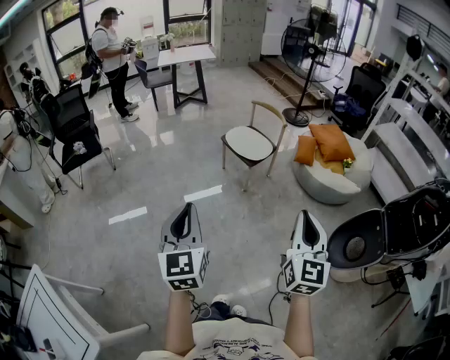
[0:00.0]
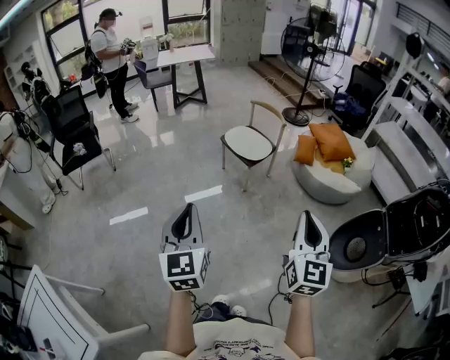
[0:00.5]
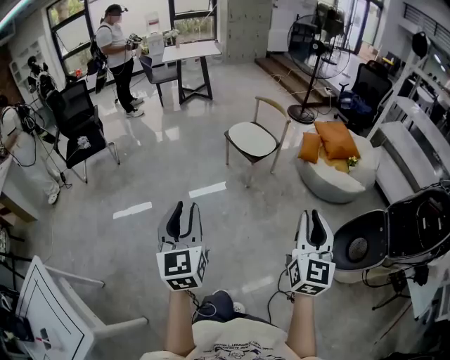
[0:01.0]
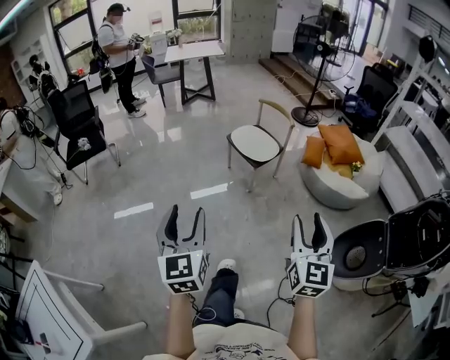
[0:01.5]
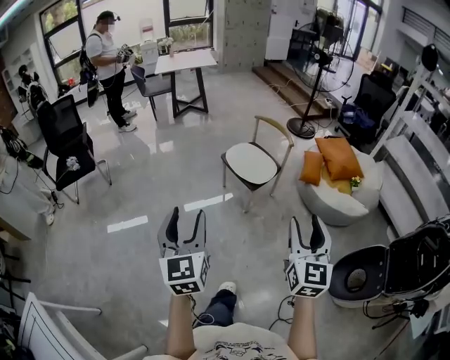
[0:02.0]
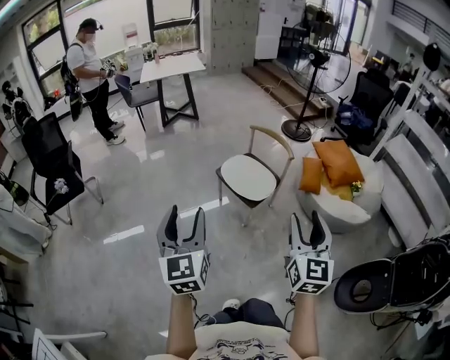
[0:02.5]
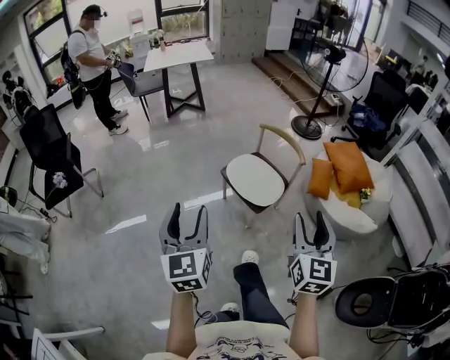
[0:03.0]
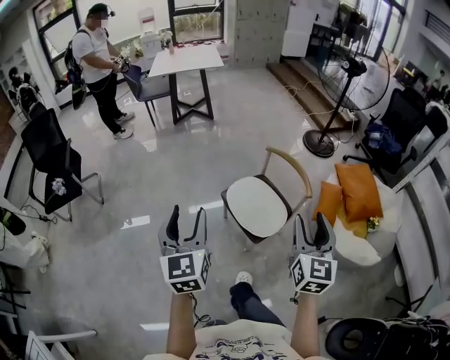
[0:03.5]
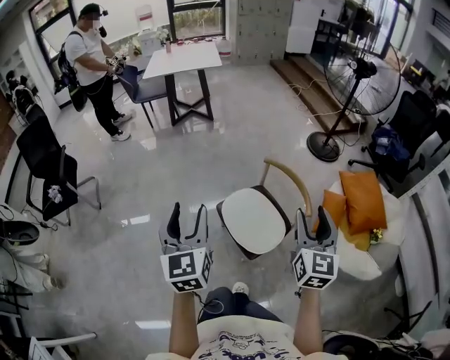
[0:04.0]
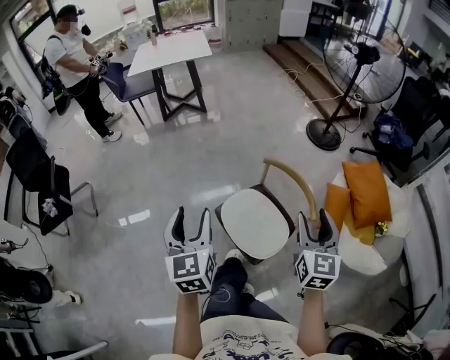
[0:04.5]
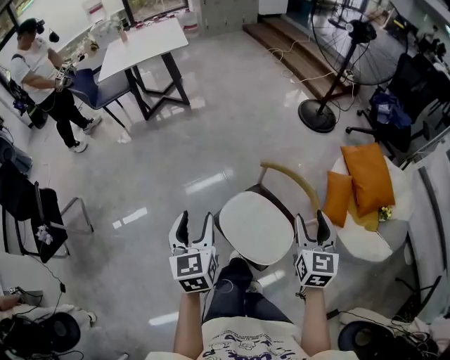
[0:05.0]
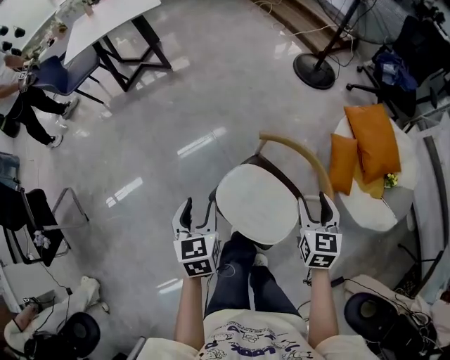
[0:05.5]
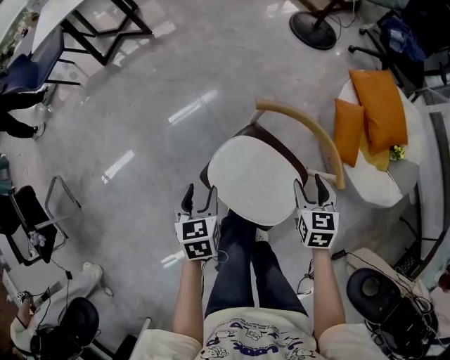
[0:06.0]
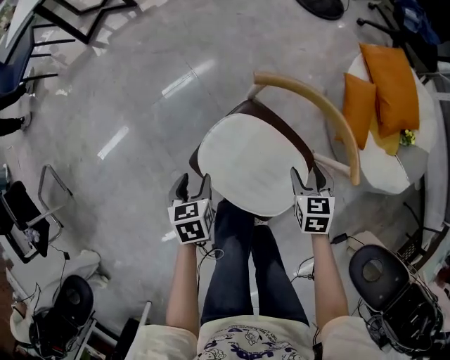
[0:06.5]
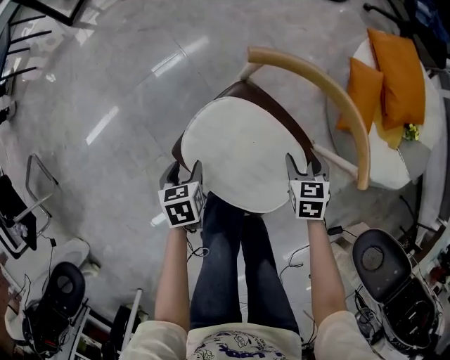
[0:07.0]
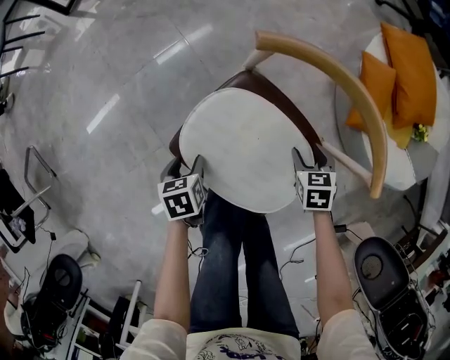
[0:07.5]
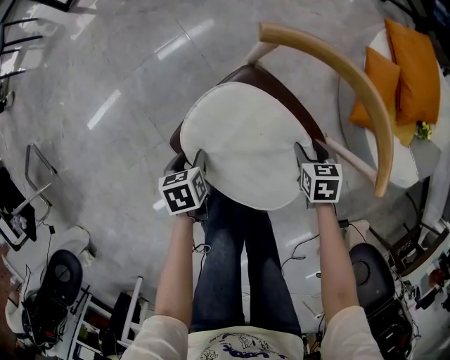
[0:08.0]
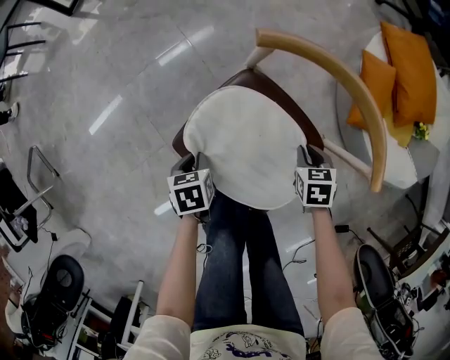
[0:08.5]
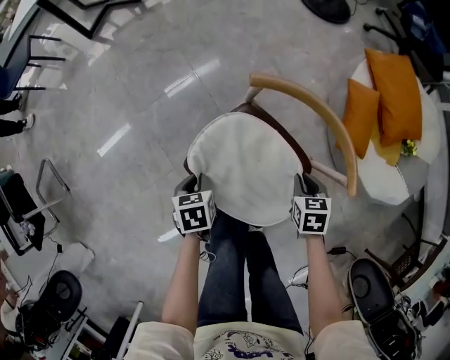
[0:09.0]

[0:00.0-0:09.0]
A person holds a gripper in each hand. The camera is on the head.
0:00.0 to 0:02.0: Both grippers travel together forward, roughly 25 cm. The right gripper opens. The left gripper opens.
0:02.0 to 0:04.5: The two grippers travel together, forward, approximately 80 cm.
0:04.5 to 0:07.0: The grippers both shift downward by about 60 cm. The left gripper tips its fingers downward by roughly 50 degrees. The right gripper tilts its fingers approximately 50 degrees downward.
0:07.0 to 0:09.0: The left gripper is displaced upward by roughly 5 cm, and closes its fingers. The right gripper closes up.

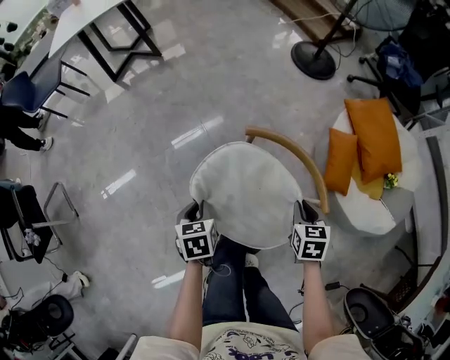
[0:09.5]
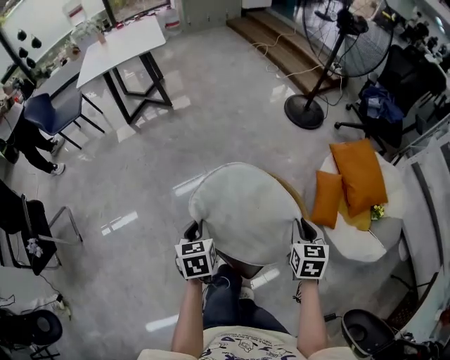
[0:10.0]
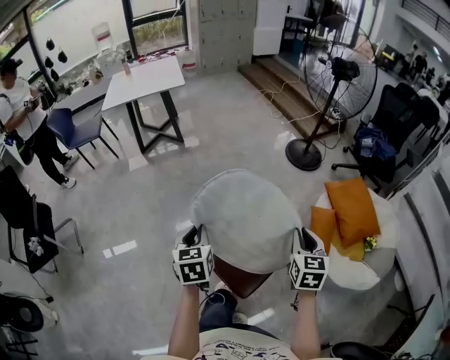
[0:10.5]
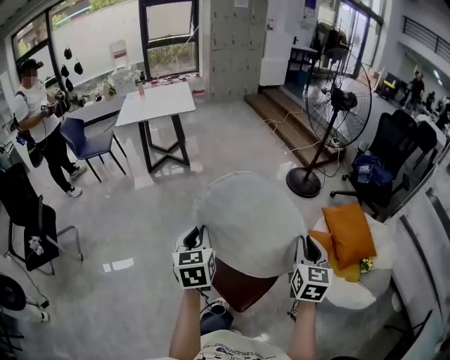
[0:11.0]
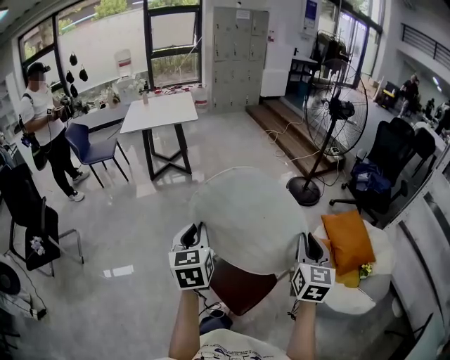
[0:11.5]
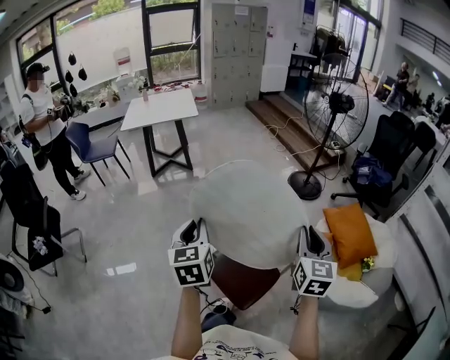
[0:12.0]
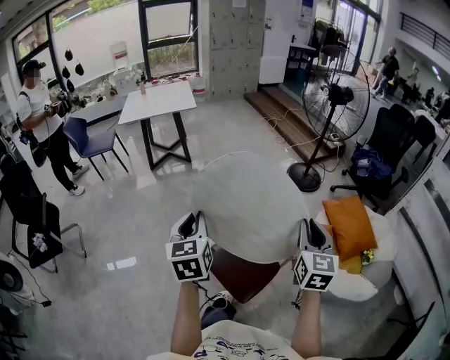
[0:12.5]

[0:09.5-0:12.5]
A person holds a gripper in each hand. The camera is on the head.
0:09.5 to 0:11.0: Both grippers move upward, approximately 40 cm. The right gripper points its fingers roughly 40 degrees further upward, while the left gripper angles its fingers upward, by some 40 degrees.
0:11.0 to 0:12.5: The grippers both shift upward by roughly 5 cm.

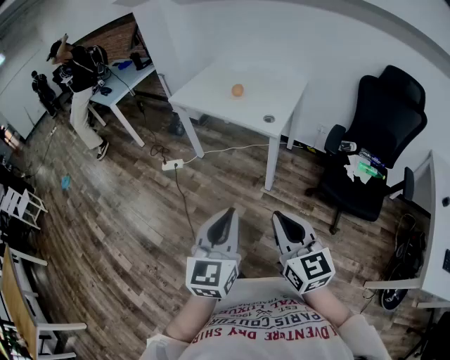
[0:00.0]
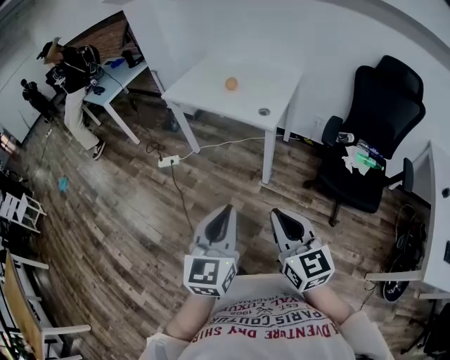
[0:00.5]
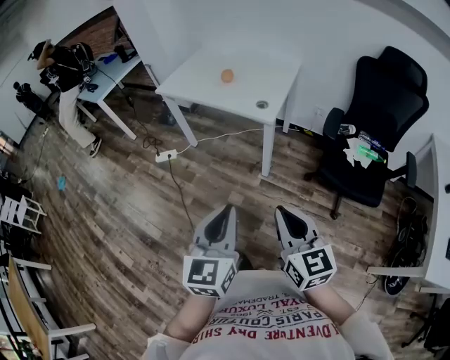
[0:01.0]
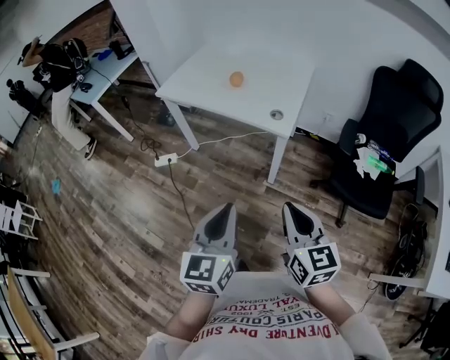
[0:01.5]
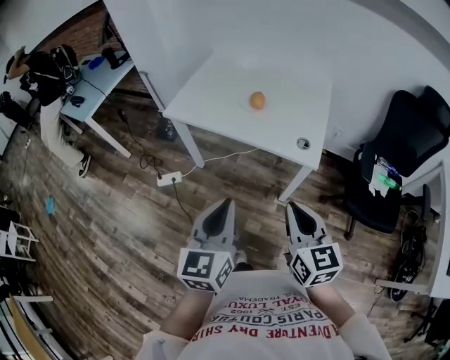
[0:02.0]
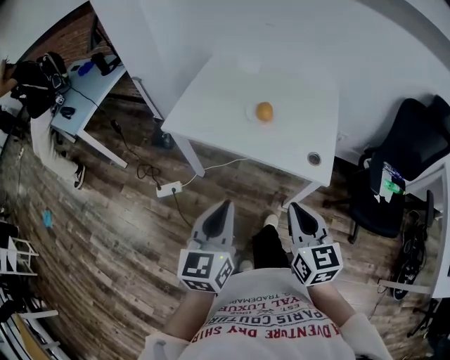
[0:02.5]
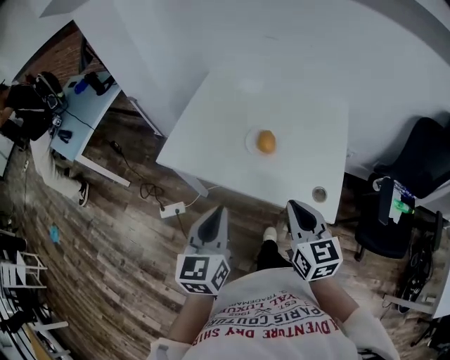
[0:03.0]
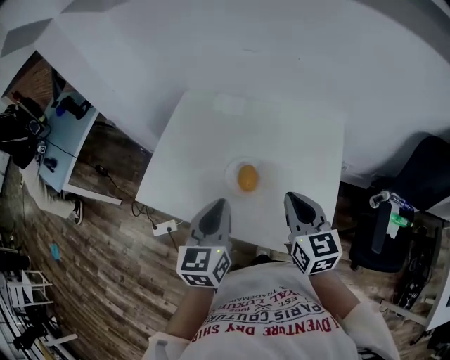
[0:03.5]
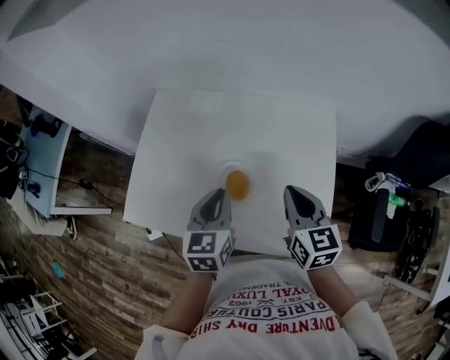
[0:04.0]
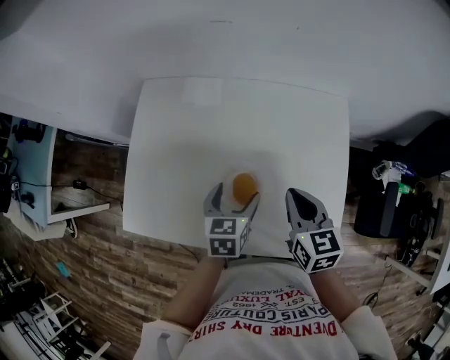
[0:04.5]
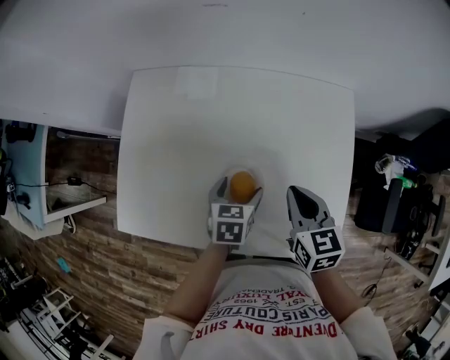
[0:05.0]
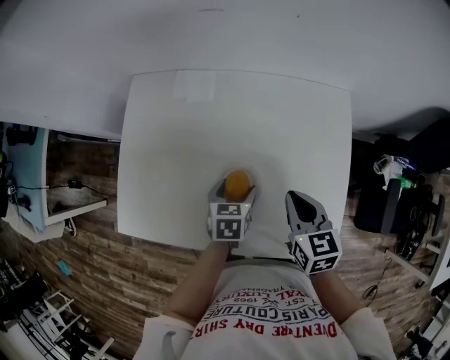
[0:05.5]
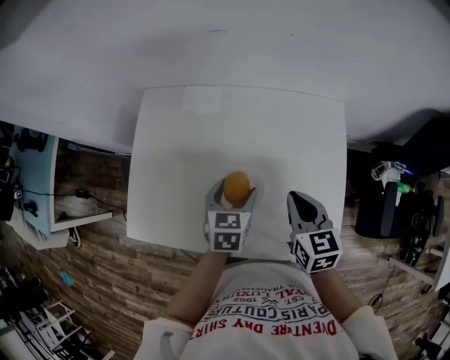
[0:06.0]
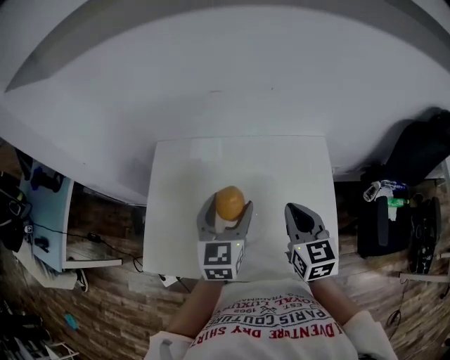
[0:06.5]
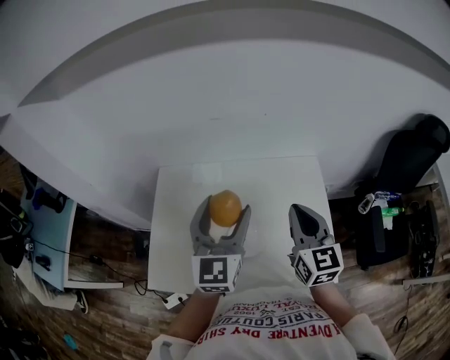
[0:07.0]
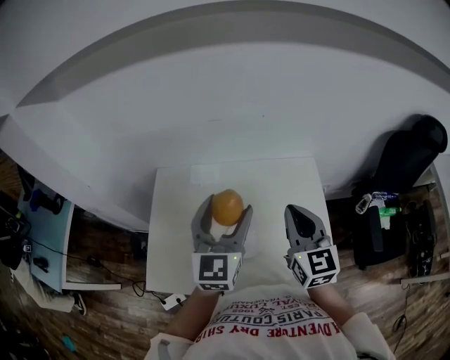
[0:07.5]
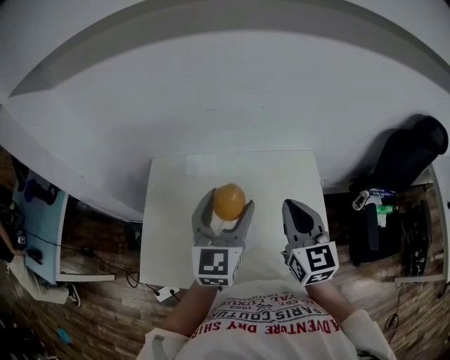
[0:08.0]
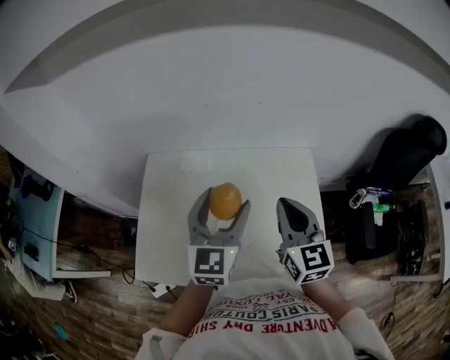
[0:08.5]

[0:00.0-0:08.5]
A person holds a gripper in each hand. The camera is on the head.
0:00.0 to 0:02.0: The grippers both shift forward and to the left by approximately 40 cm.
0:02.0 to 0:04.0: The pair of grippers is taken forward, approximately 50 cm. The left gripper changes its angle by about 20 degrees.
0:04.0 to 0:06.5: The right gripper travels downward and back again, some 10 cm each way, while the left gripper moves forward, some 10 cm, reaches roughly 20 cm downward, then returns, and opens up.
0:06.5 to 0:08.5: Both grippers move upward, approximately 10 cm.

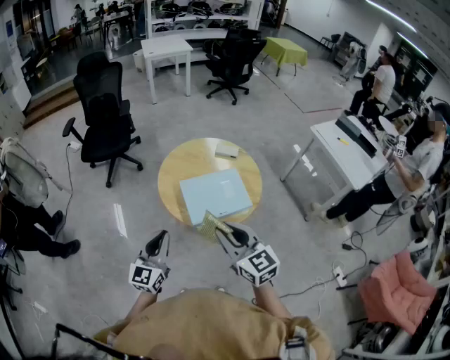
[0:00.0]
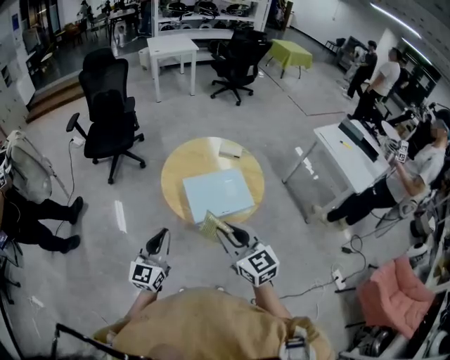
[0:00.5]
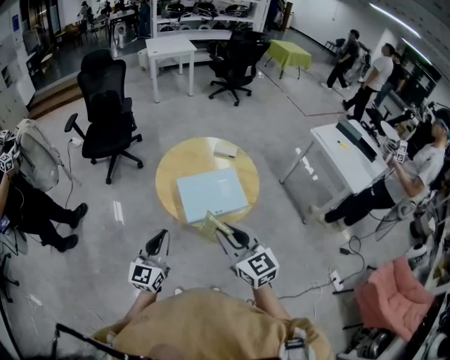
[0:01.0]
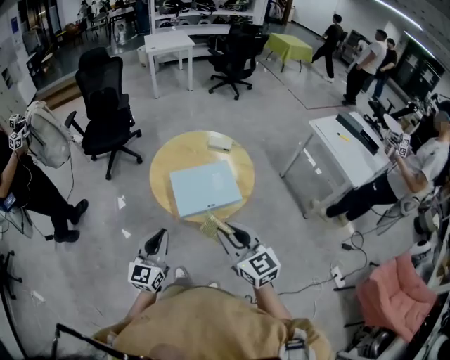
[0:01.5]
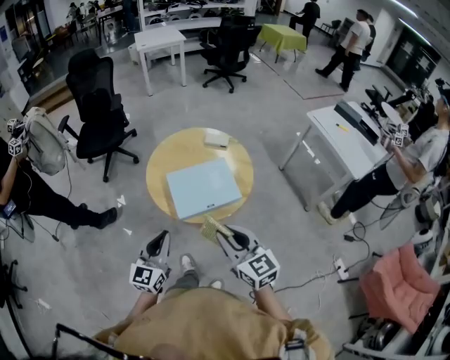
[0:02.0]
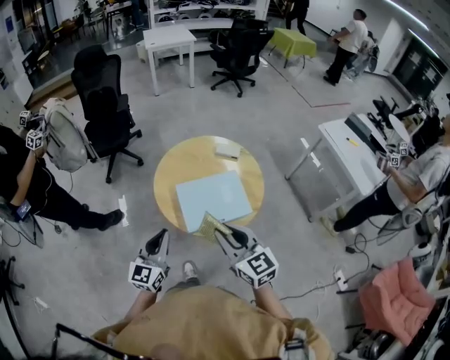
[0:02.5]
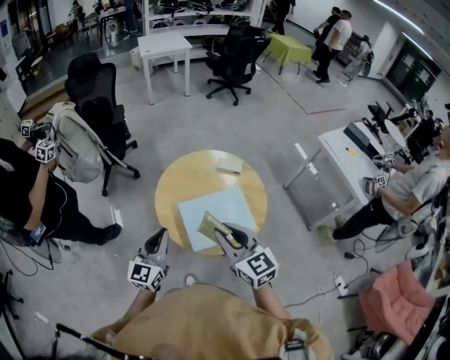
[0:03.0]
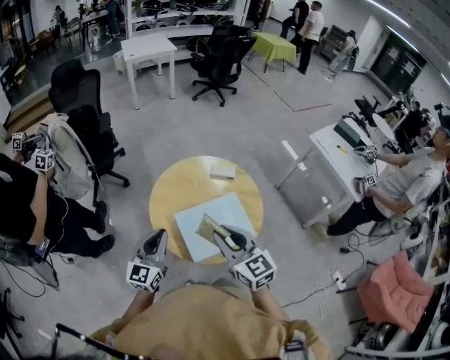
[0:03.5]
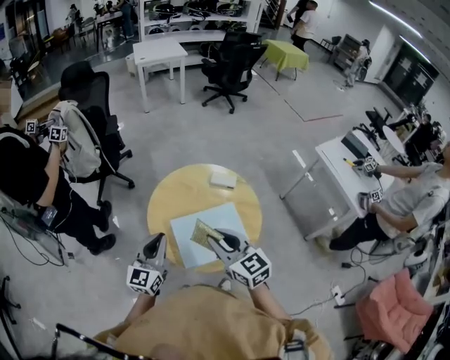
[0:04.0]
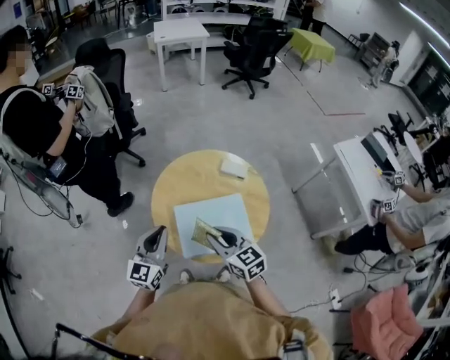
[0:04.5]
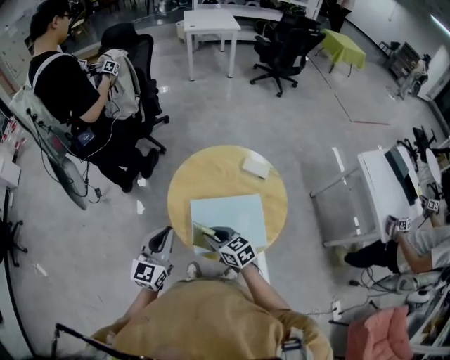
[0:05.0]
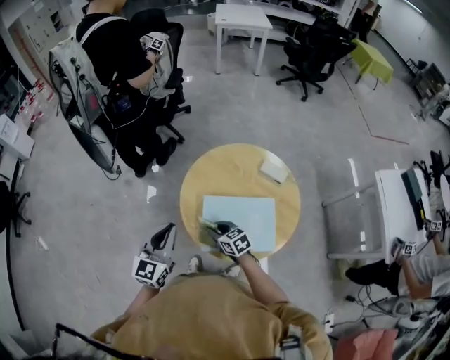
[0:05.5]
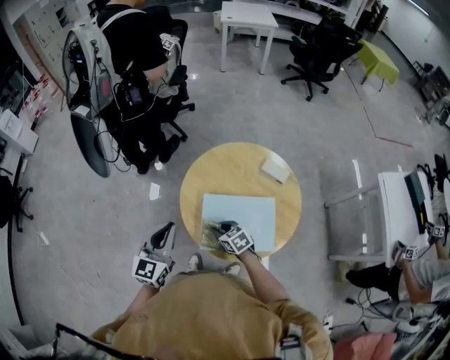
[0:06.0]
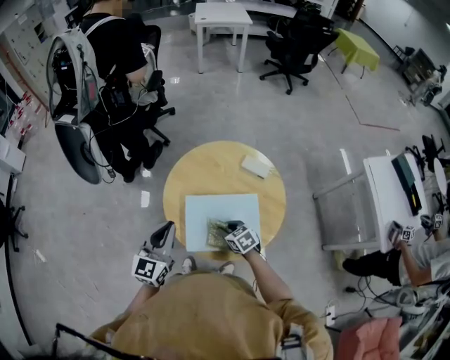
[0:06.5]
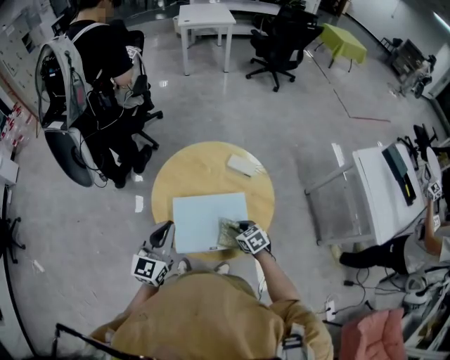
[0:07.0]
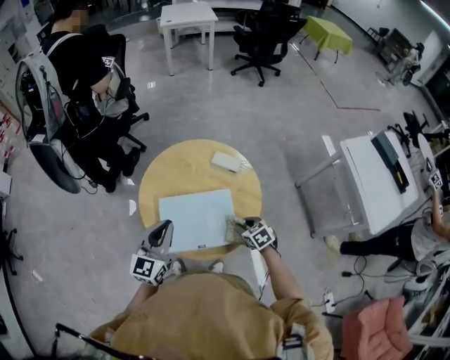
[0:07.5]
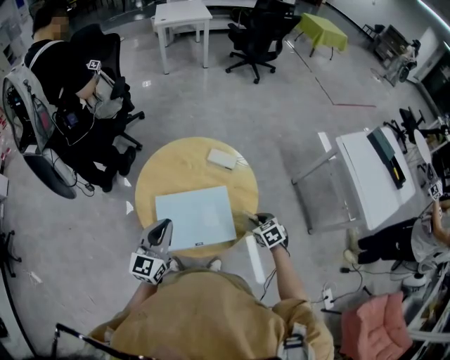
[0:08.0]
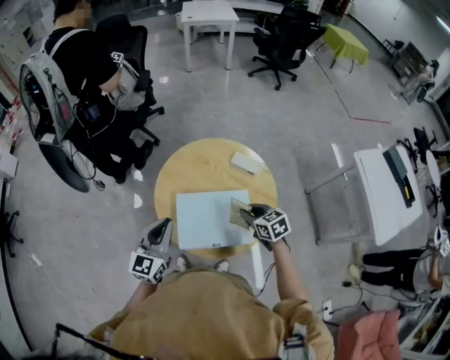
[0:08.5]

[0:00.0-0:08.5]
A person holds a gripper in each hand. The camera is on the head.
0:00.0 to 0:02.0: Both grippers travel together to the right, roughly 10 cm.
0:02.0 to 0:04.0: Both grippers move forward, roughly 25 cm.
0:04.0 to 0:06.5: The right gripper shifts some 30 cm downward, and angles its fingers downward, by roughly 30 degrees. The left gripper changes place by approximately 5 cm.
0:06.5 to 0:08.5: The left gripper travels to the right and back again, roughly 10 cm each way. Meanwhile the right gripper is displaced to the right and upward by some 15 cm.
